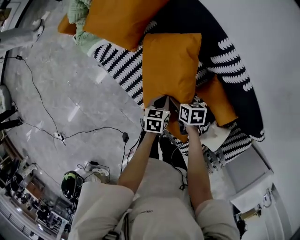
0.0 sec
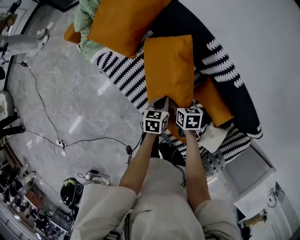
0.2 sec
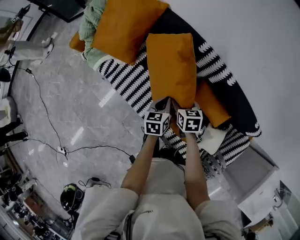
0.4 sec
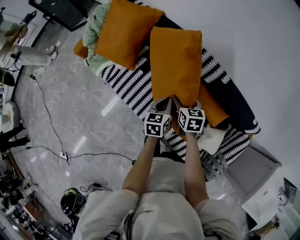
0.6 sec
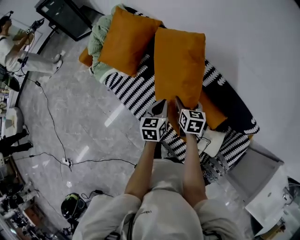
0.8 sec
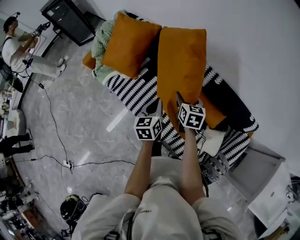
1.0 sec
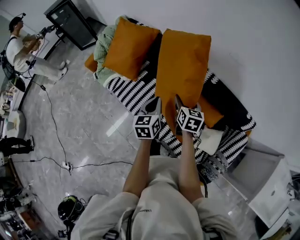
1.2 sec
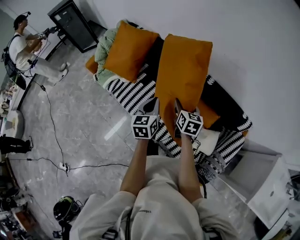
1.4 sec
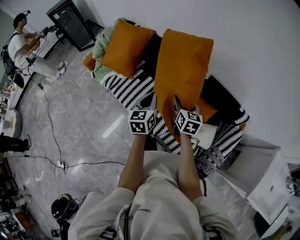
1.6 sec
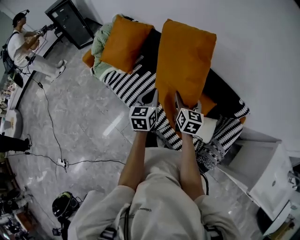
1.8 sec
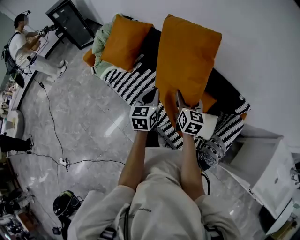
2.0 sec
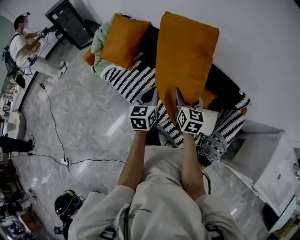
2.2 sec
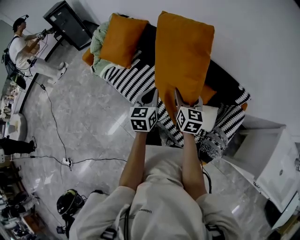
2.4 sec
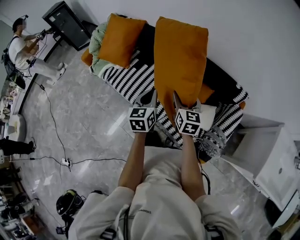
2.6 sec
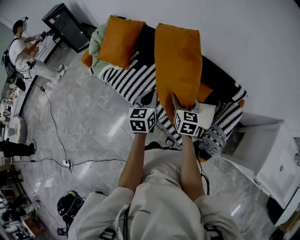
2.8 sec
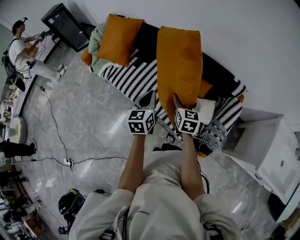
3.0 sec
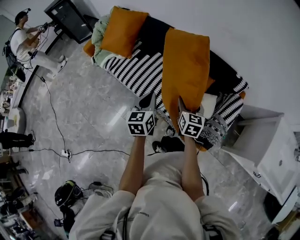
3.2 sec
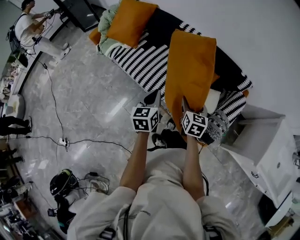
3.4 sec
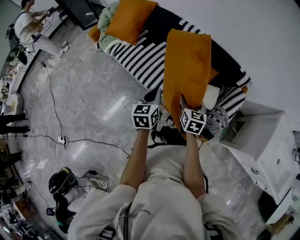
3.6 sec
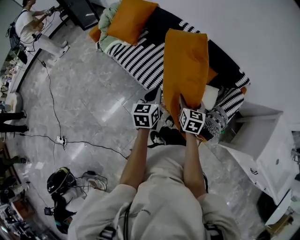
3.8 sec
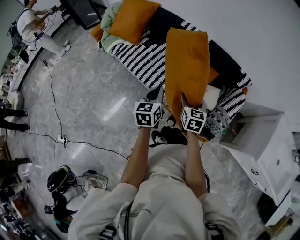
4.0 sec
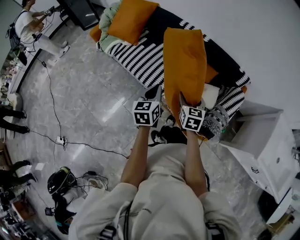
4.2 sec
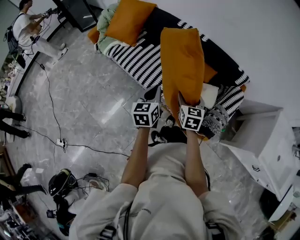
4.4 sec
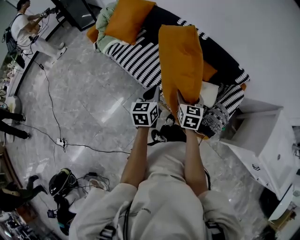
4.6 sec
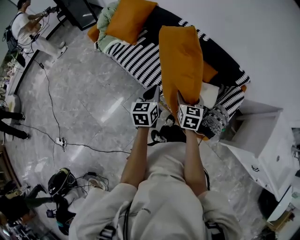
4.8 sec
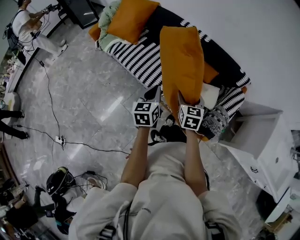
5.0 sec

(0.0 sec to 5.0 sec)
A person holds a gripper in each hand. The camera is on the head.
0.0 sec - 1.6 sec: The right gripper travels upward, backward and to the right by about 40 cm, and tips its fingers upward by roughly 30 degrees; the left gripper travels upward and backward by about 40 cm, and turns by some 40 degrees.
1.6 sec - 3.4 sec: Both grippers travel together backward, about 25 cm.
3.4 sec - 5.0 sec: The right gripper shifts roughly 5 cm to the left.

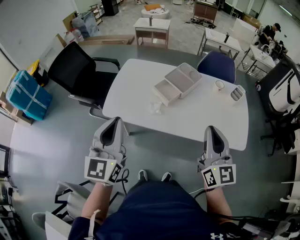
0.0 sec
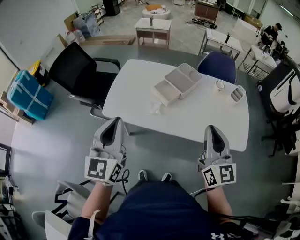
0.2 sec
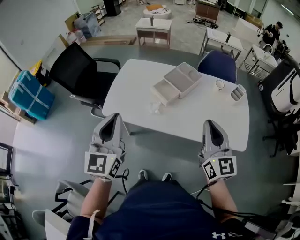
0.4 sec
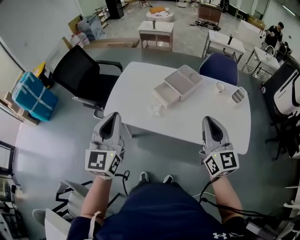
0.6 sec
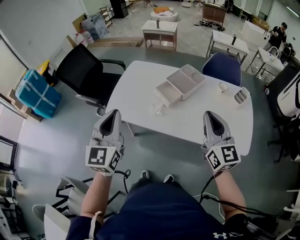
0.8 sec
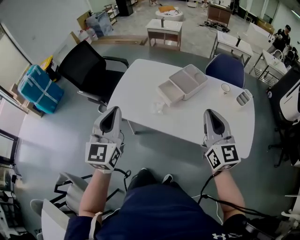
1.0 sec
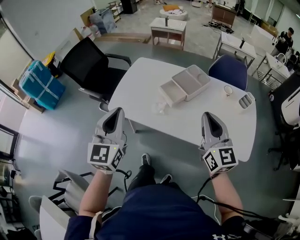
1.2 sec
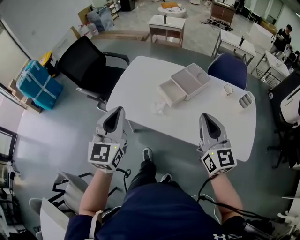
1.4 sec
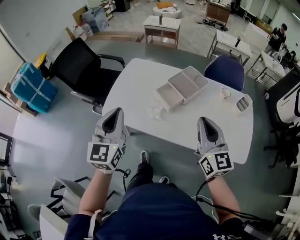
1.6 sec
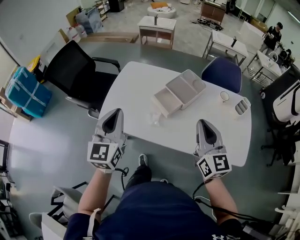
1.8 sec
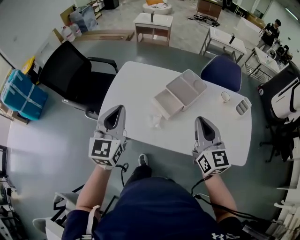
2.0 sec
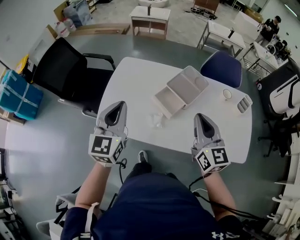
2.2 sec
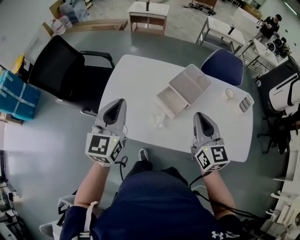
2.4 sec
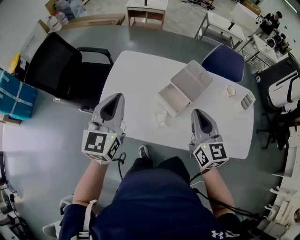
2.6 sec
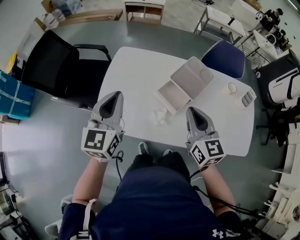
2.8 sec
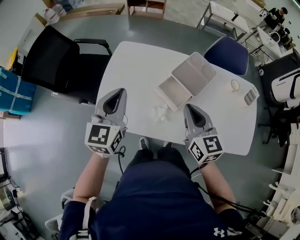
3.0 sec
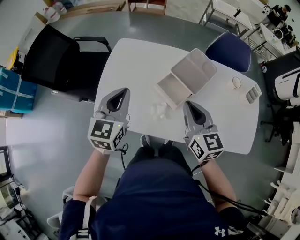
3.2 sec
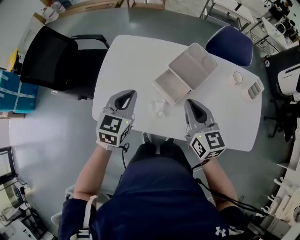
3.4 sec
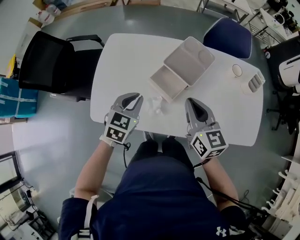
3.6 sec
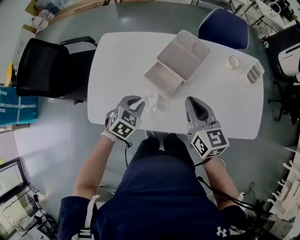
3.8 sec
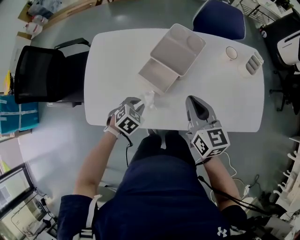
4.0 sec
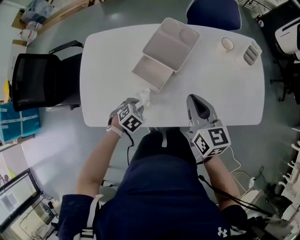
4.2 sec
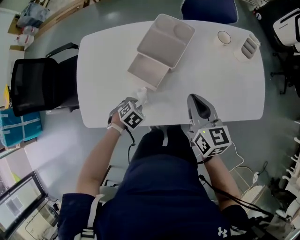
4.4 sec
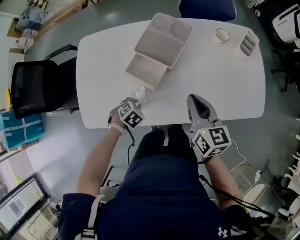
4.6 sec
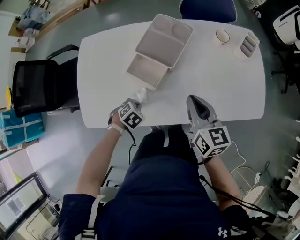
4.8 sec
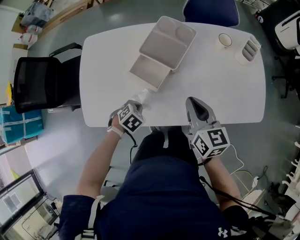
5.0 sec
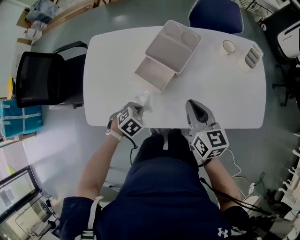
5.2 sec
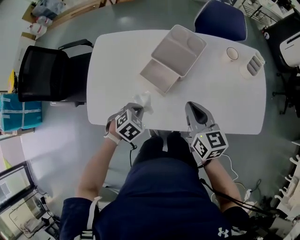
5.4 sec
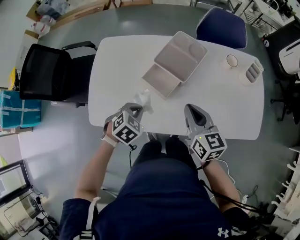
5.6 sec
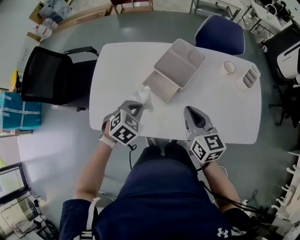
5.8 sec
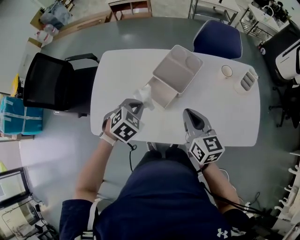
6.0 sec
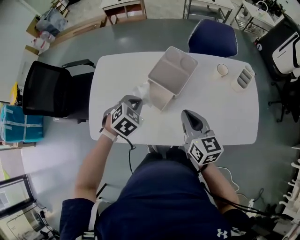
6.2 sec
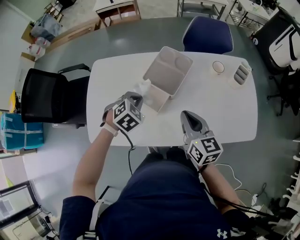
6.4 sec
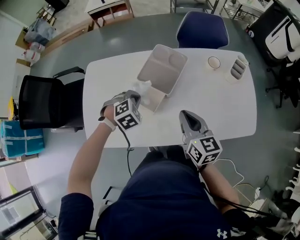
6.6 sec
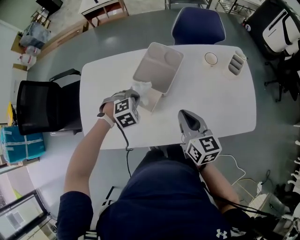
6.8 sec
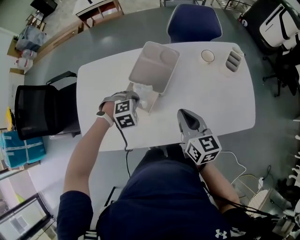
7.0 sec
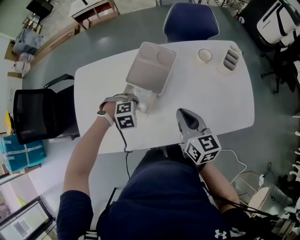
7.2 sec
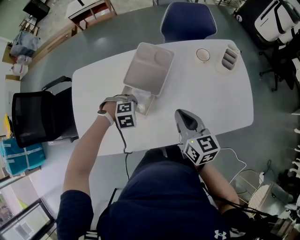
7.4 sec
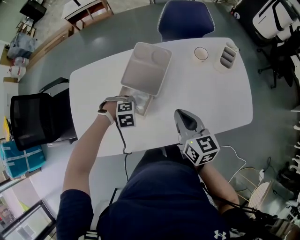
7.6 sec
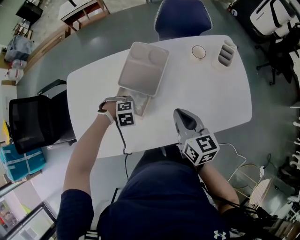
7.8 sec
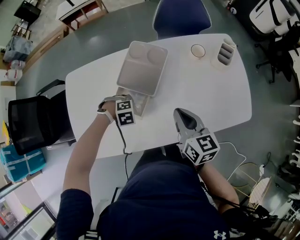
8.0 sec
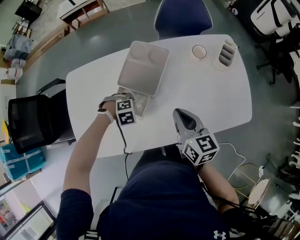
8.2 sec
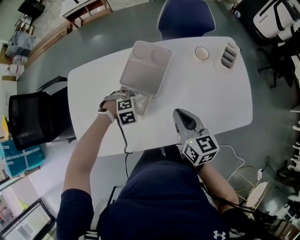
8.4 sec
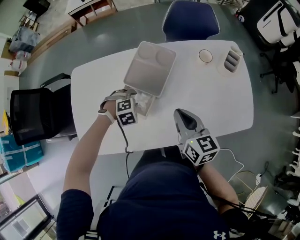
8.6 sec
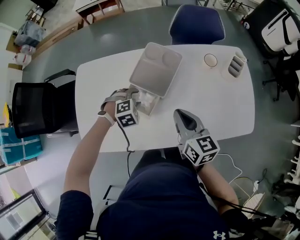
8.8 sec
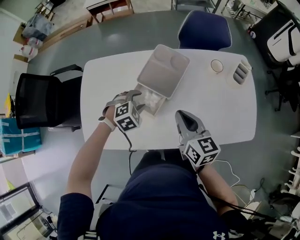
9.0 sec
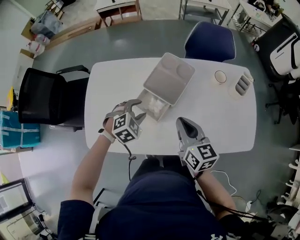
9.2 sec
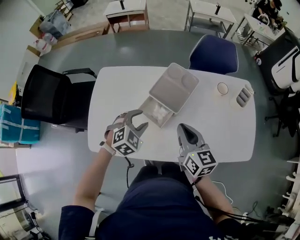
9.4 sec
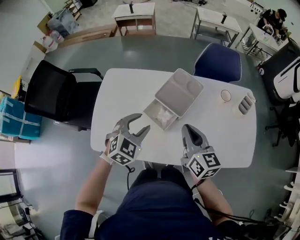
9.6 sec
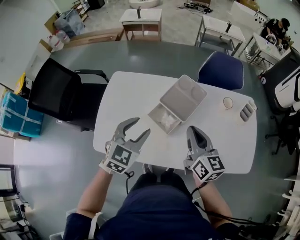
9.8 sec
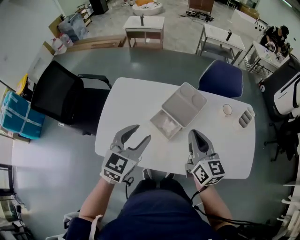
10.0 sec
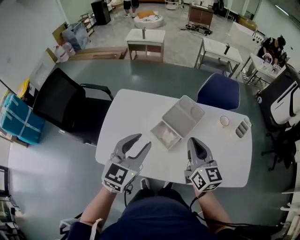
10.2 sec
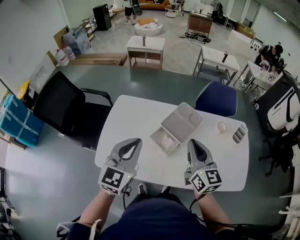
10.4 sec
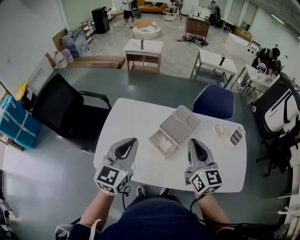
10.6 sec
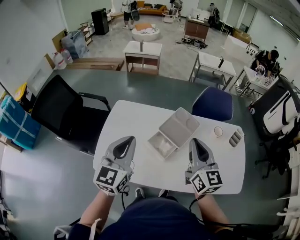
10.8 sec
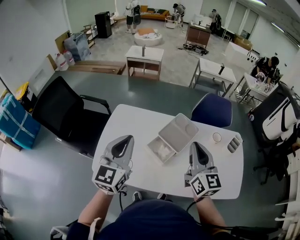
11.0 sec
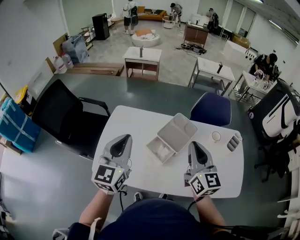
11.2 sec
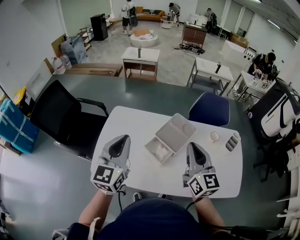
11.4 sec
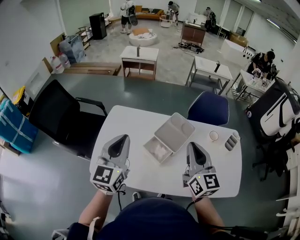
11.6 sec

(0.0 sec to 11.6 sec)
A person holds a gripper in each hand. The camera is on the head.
0.0 sec - 1.4 sec: The right gripper heads forward, covering about 10 cm. The left gripper ends up about 5 cm from where it was.
1.4 sec - 2.8 sec: The right gripper travels forward, to the left and downward by roughly 25 cm. Meanwhile the left gripper goes some 25 cm forward.
2.8 sec - 4.4 sec: The left gripper shifts some 40 cm downward, points its fingers about 70 degrees further downward, and opens up; the right gripper ends up approximately 20 cm from where it was, and turns by some 20 degrees.
4.4 sec - 5.8 sec: The left gripper goes some 20 cm upward, turns by about 20 degrees, and closes, while the right gripper ends up roughly 5 cm from where it was.
5.8 sec - 7.2 sec: The left gripper moves approximately 15 cm, and rotates around the line of its fingers by some 50 degrees, clockwise from behind. Meanwhile the right gripper moves some 5 cm.
7.2 sec - 8.8 sec: The left gripper opens its fingers.
8.8 sec - 10.2 sec: The right gripper goes some 15 cm upward and to the left. The left gripper moves upward, some 30 cm, and tilts its fingers roughly 50 degrees upward.
10.2 sec - 11.6 sec: The left gripper shifts about 10 cm to the left and upward, and closes up, while the right gripper shifts some 5 cm upward.

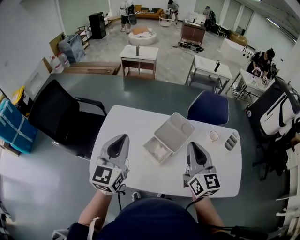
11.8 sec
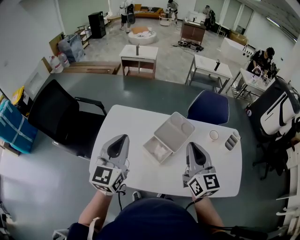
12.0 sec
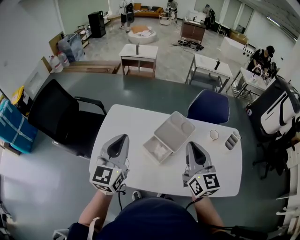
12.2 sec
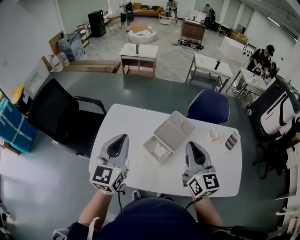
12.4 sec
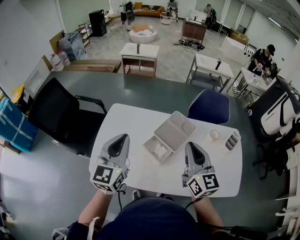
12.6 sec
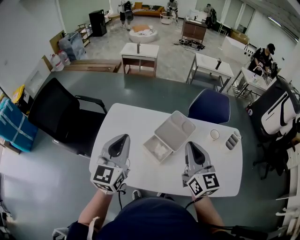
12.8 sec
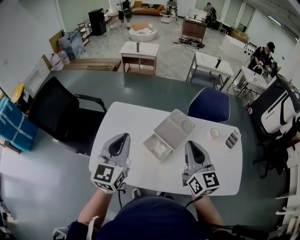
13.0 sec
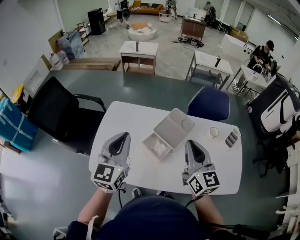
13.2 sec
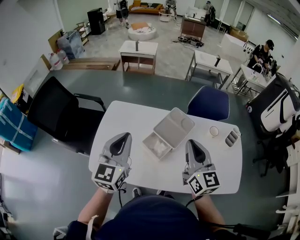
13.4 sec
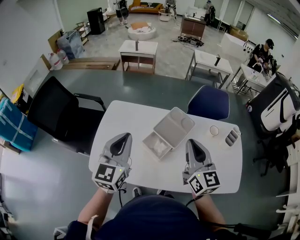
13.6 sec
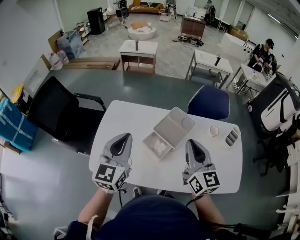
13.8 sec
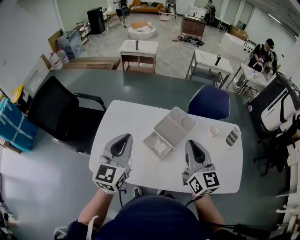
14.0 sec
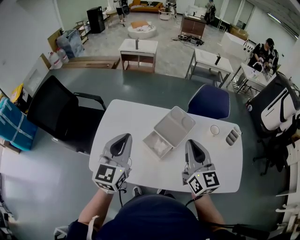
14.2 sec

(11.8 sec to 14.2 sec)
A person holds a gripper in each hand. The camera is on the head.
11.8 sec - 14.2 sec: The grippers move only a little.

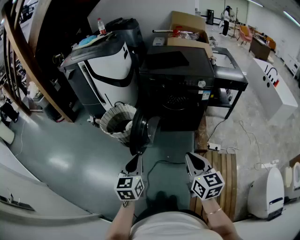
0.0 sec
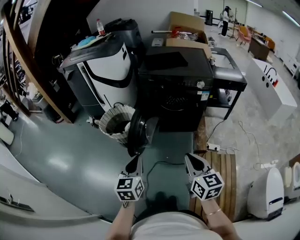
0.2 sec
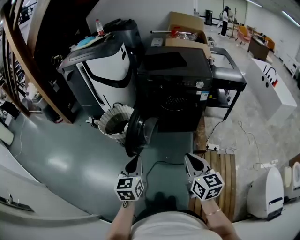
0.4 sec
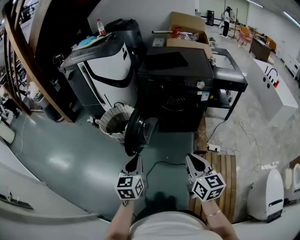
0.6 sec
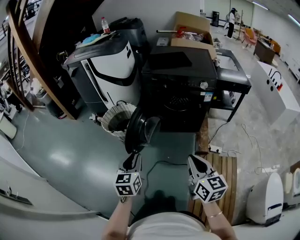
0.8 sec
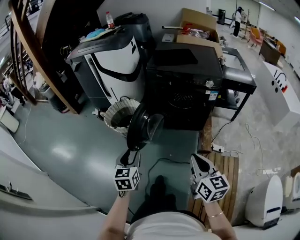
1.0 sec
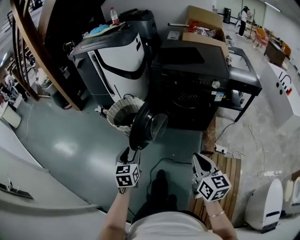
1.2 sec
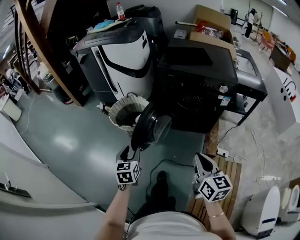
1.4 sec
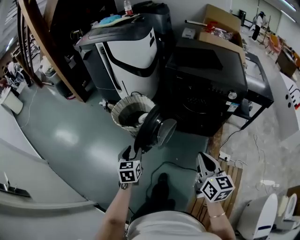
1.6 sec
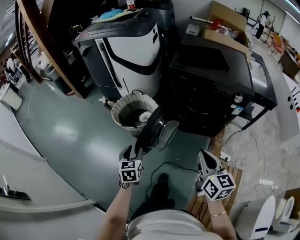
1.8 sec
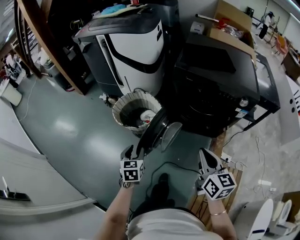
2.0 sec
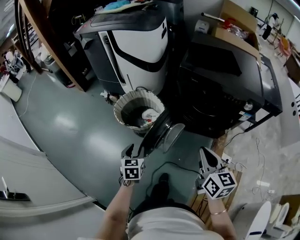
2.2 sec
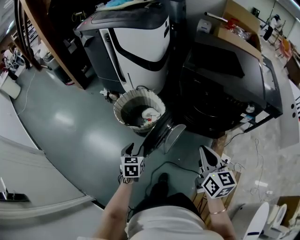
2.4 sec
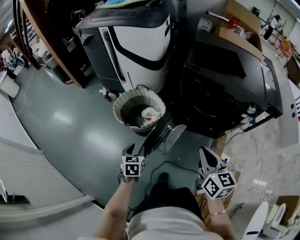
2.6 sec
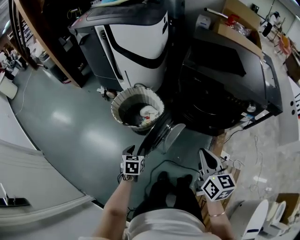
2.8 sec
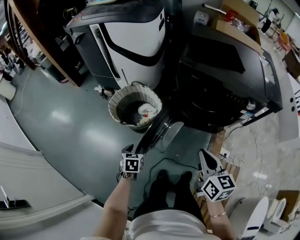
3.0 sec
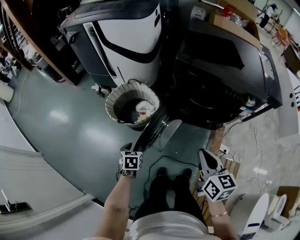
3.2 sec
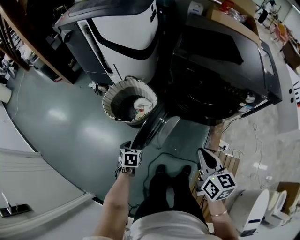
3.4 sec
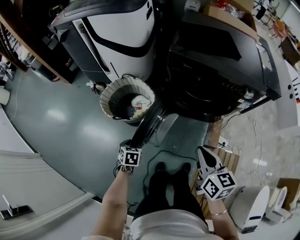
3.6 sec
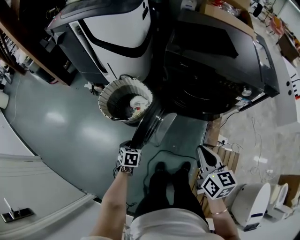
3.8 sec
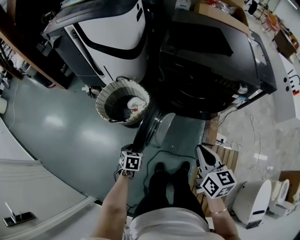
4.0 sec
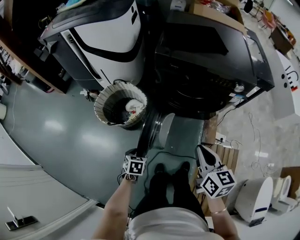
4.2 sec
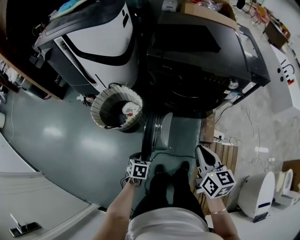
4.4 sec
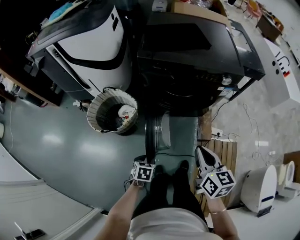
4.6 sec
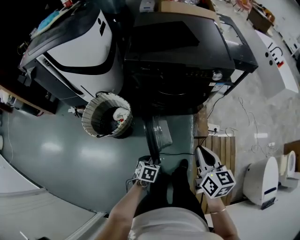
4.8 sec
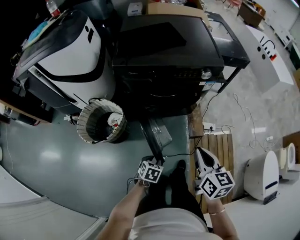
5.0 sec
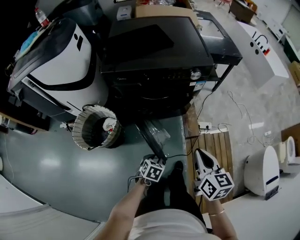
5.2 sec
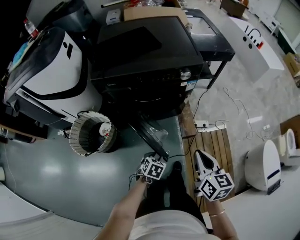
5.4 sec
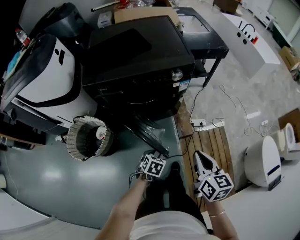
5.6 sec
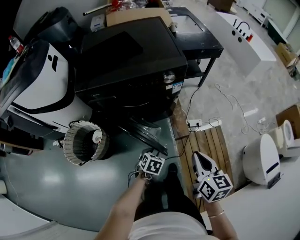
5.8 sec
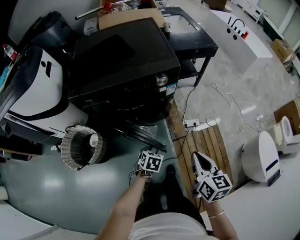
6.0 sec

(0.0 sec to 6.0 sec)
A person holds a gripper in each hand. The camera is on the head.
0.0 sec - 1.6 sec: The right gripper is displaced forward by approximately 15 cm, while the left gripper shifts some 25 cm forward, downward and to the left, swivels about 20 degrees, and opens.
1.6 sec - 3.0 sec: The right gripper is displaced forward by about 20 cm. Meanwhile the left gripper shifts approximately 20 cm forward and downward, and rotates roughly 20 degrees.
3.0 sec - 4.4 sec: The right gripper shifts some 10 cm to the right, while the left gripper shifts approximately 15 cm to the right.
4.4 sec - 6.0 sec: The left gripper ends up some 40 cm from where it was, and changes its angle by some 30 degrees; the right gripper ends up about 30 cm from where it was, and swivels roughly 30 degrees.
